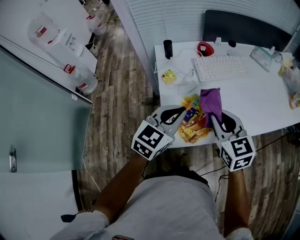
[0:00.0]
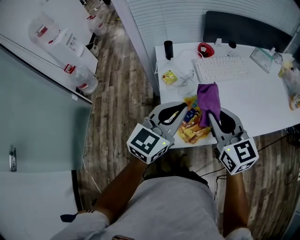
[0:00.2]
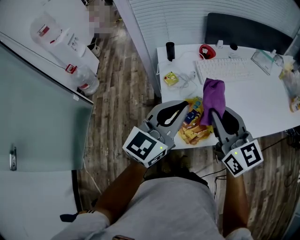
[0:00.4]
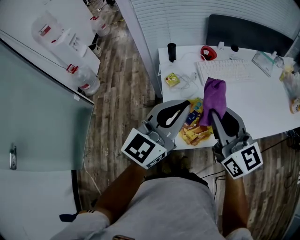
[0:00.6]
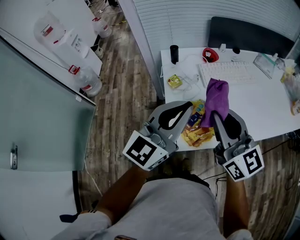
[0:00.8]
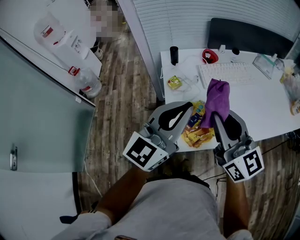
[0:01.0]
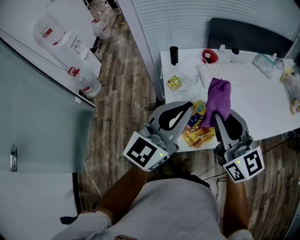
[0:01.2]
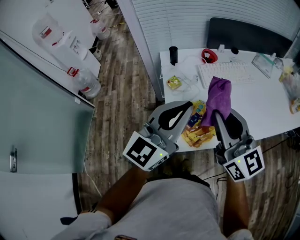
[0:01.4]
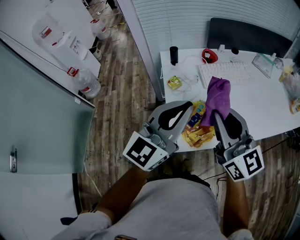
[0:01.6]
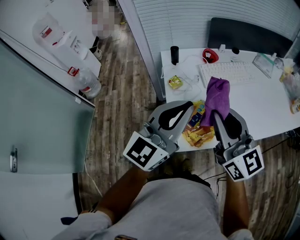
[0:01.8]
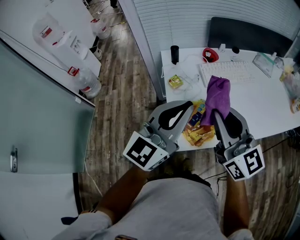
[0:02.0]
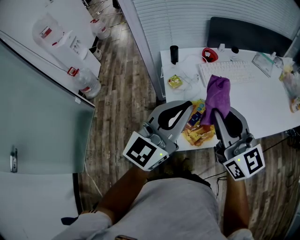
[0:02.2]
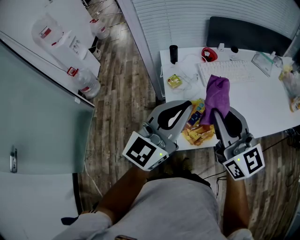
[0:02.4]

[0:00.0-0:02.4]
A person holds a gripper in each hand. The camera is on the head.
0:00.0 to 0:01.2: Both grippers move upward, approximately 10 cm. The right gripper points its fingers some 30 degrees further upward, while the left gripper changes its angle by approximately 30 degrees.
0:01.2 to 0:02.4: Neither gripper changes place.

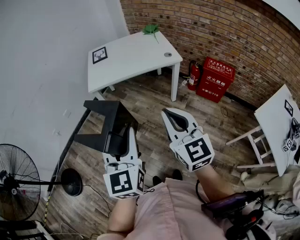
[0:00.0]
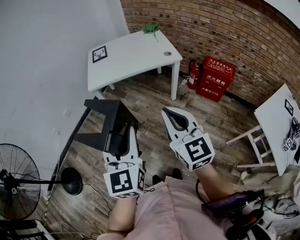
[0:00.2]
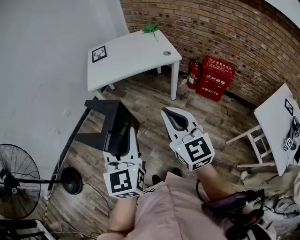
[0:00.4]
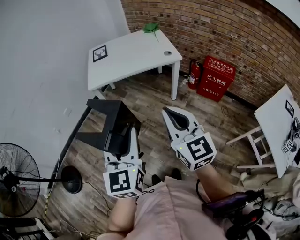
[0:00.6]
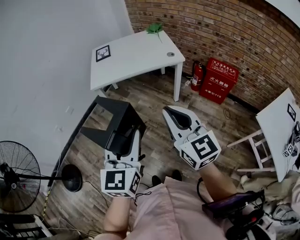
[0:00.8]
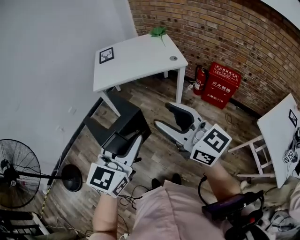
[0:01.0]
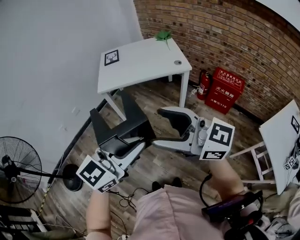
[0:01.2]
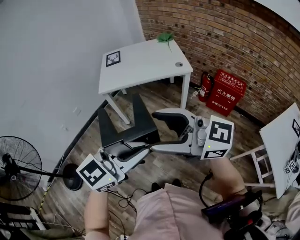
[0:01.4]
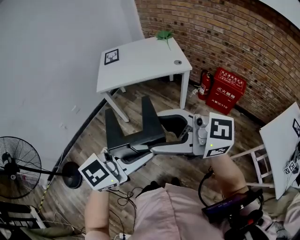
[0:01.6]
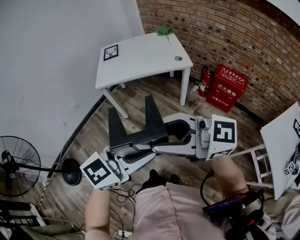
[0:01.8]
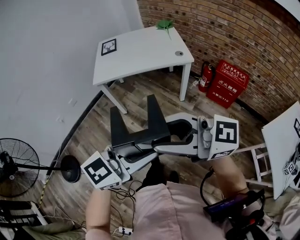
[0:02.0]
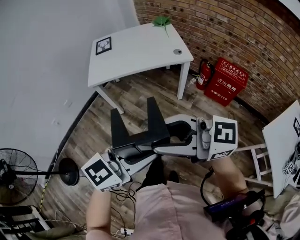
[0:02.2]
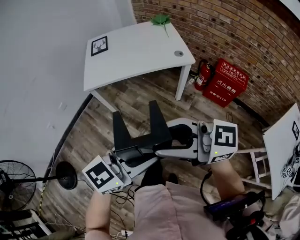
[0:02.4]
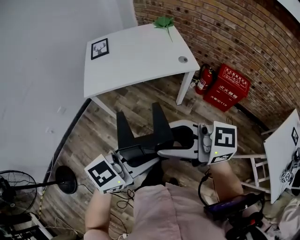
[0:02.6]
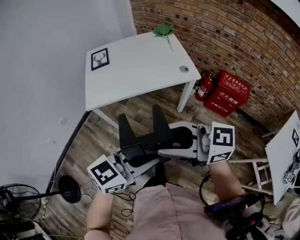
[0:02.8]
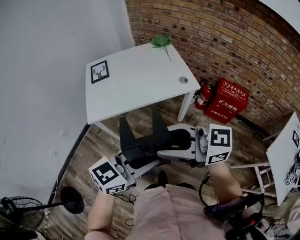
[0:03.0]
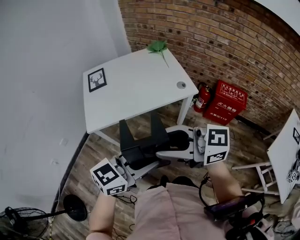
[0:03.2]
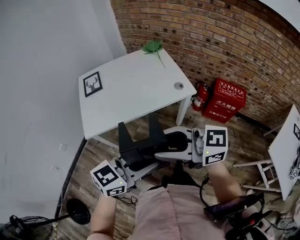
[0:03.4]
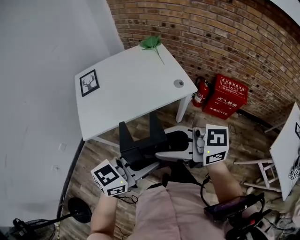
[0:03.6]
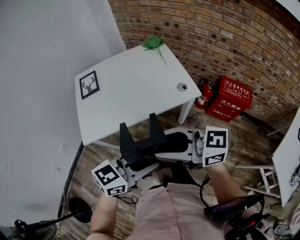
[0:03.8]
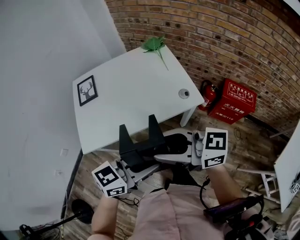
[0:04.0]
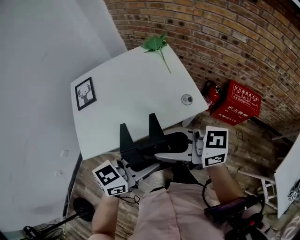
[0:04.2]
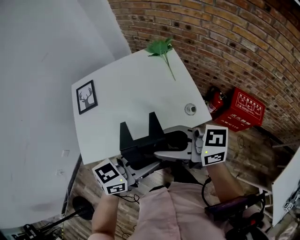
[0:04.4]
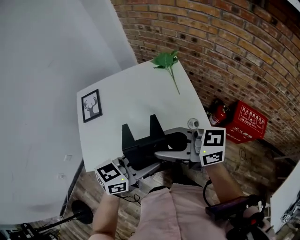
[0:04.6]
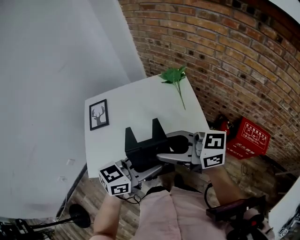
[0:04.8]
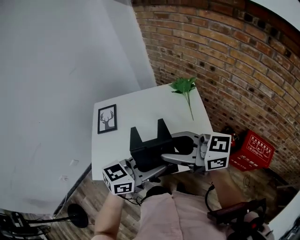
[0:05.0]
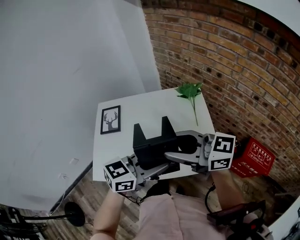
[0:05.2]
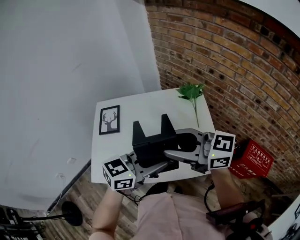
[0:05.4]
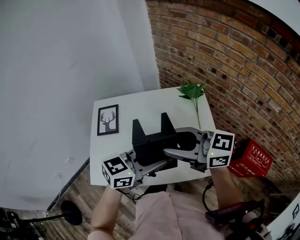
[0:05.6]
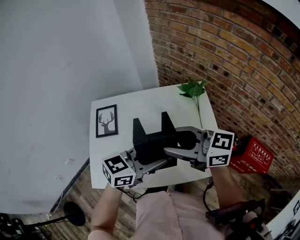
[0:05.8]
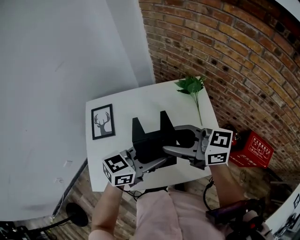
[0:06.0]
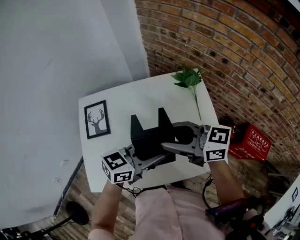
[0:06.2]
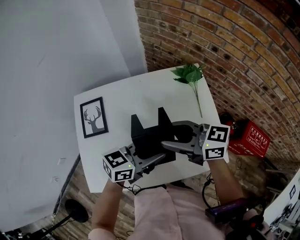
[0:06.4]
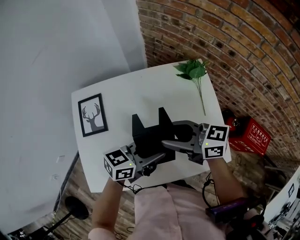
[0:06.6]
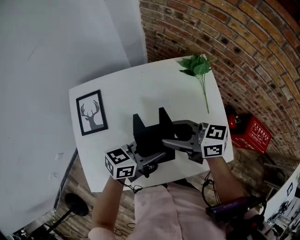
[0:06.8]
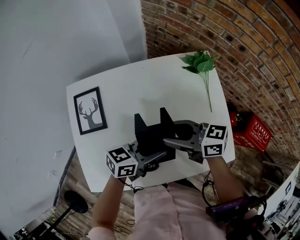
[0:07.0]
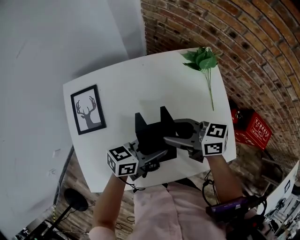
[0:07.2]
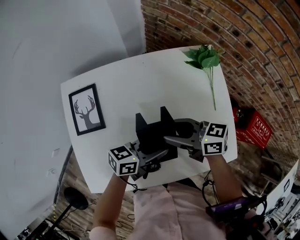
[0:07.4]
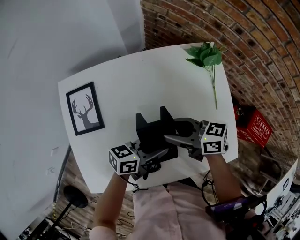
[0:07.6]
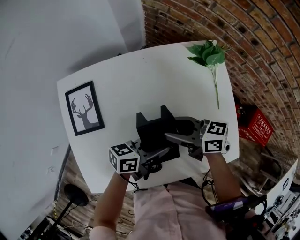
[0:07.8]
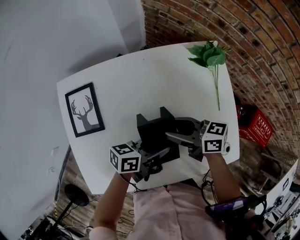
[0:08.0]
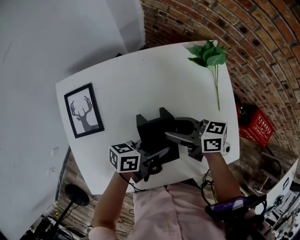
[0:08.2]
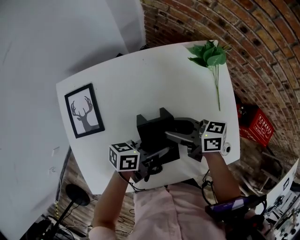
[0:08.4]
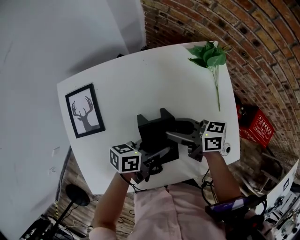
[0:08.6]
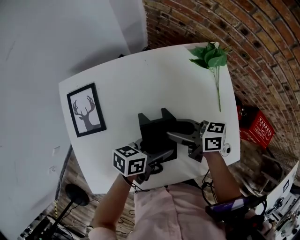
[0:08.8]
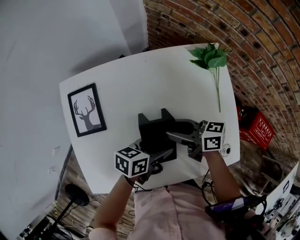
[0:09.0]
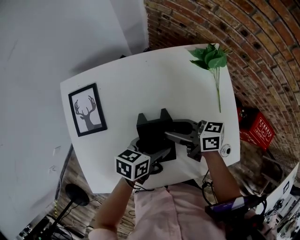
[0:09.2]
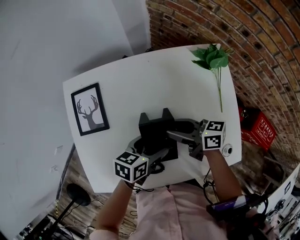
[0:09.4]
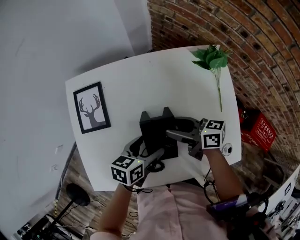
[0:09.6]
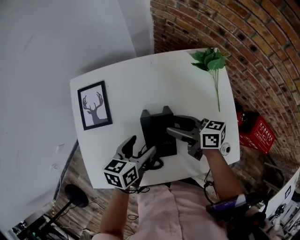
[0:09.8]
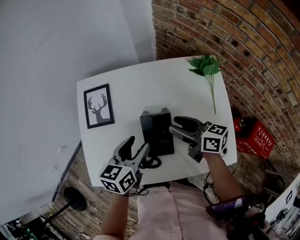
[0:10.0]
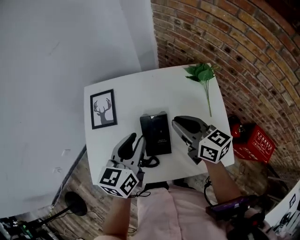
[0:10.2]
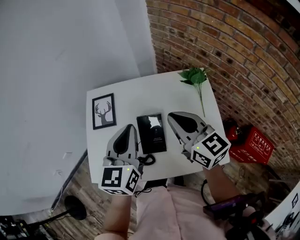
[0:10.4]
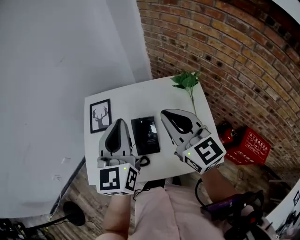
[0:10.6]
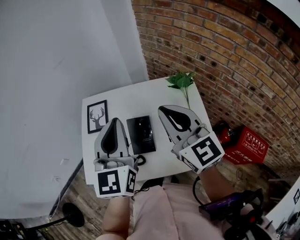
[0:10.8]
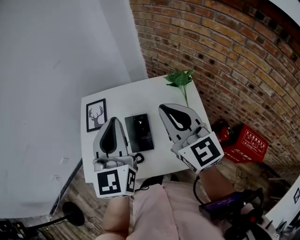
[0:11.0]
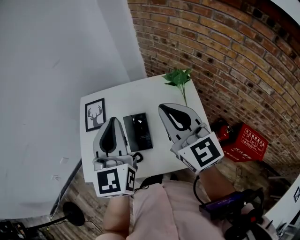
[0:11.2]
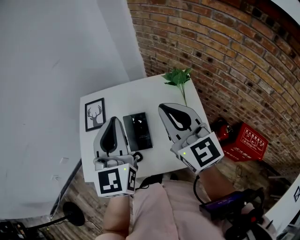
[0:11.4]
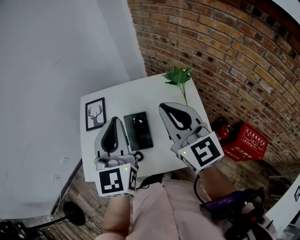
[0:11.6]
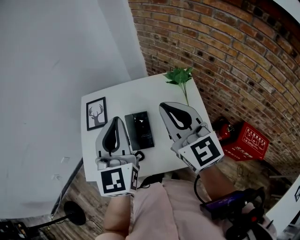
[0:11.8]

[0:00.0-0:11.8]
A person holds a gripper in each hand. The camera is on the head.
0:00.0 to 0:01.4: The right gripper heads upward, covering some 10 cm, changes its angle by about 60 degrees, and opens up. Meanwhile the left gripper moves roughly 10 cm, and turns by some 50 degrees.
0:01.4 to 0:03.0: The left gripper shifts by roughly 25 cm, and changes its angle by some 20 degrees; the right gripper moves roughly 25 cm, and closes its fingers.
0:03.0 to 0:04.4: The right gripper moves approximately 30 cm. Meanwhile the left gripper moves approximately 30 cm.
0:04.4 to 0:06.0: The right gripper ends up some 25 cm from where it was; the left gripper changes place by about 25 cm.
0:06.0 to 0:07.4: The grippers both shift downward by roughly 20 cm. The right gripper changes its angle by approximately 20 degrees. Meanwhile the left gripper changes its angle by about 30 degrees.
0:07.4 to 0:08.8: The right gripper shifts by approximately 5 cm. Meanwhile the left gripper opens.
0:08.8 to 0:10.4: Both grippers move upward, approximately 25 cm. The right gripper turns by about 50 degrees, and closes its fingers. Meanwhile the left gripper rotates about 70 degrees, and closes.
0:10.4 to 0:11.8: The left gripper heads upward, covering approximately 10 cm. Meanwhile the right gripper is displaced upward and backward by about 10 cm, and turns by about 20 degrees.

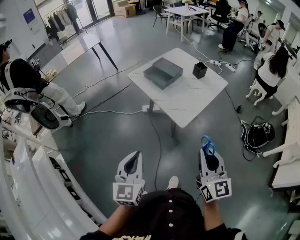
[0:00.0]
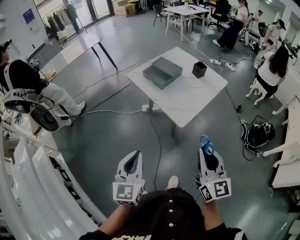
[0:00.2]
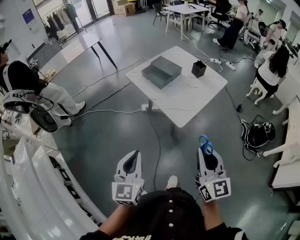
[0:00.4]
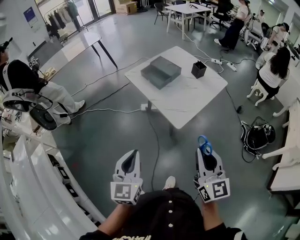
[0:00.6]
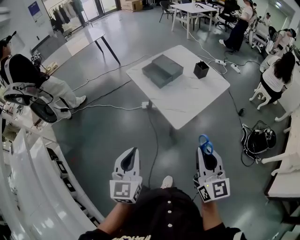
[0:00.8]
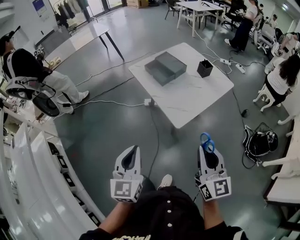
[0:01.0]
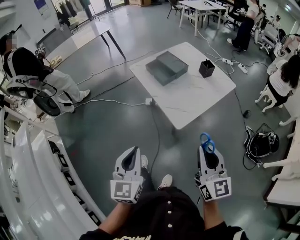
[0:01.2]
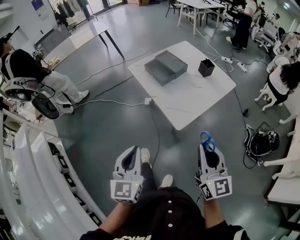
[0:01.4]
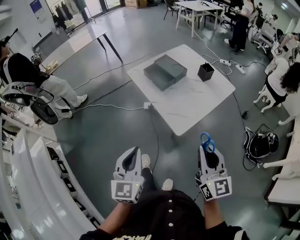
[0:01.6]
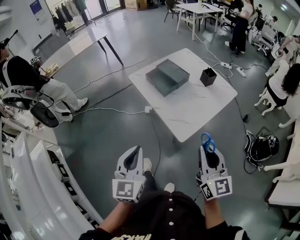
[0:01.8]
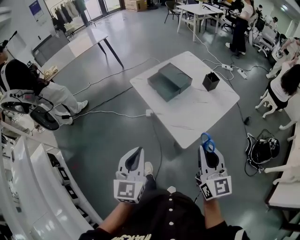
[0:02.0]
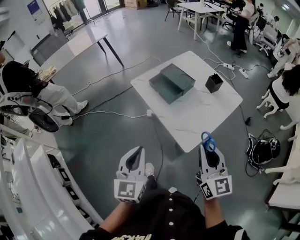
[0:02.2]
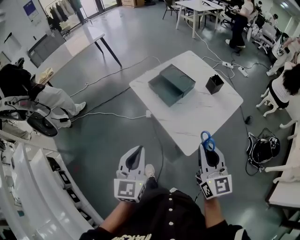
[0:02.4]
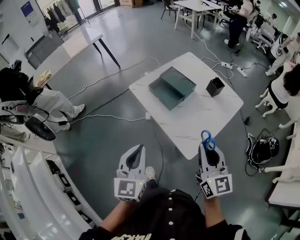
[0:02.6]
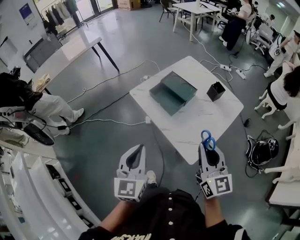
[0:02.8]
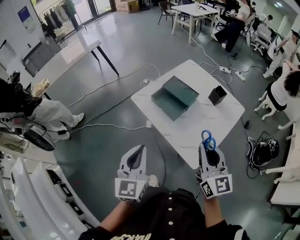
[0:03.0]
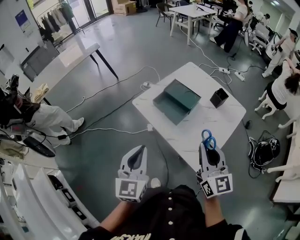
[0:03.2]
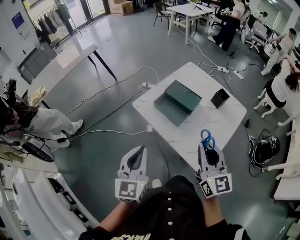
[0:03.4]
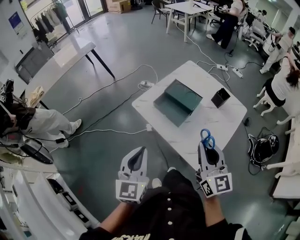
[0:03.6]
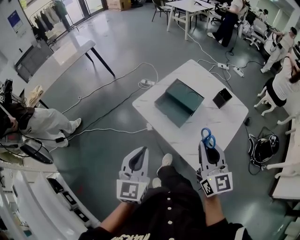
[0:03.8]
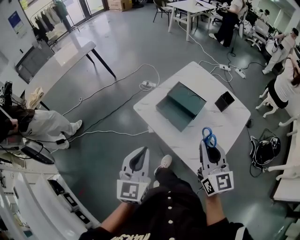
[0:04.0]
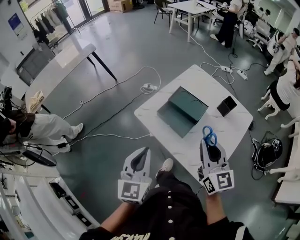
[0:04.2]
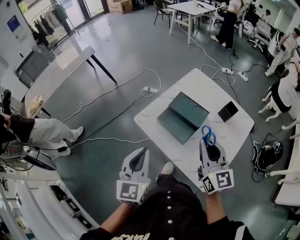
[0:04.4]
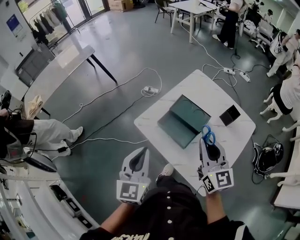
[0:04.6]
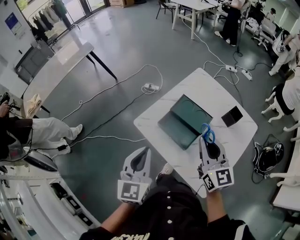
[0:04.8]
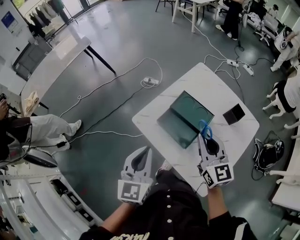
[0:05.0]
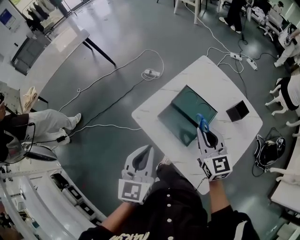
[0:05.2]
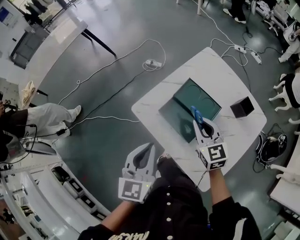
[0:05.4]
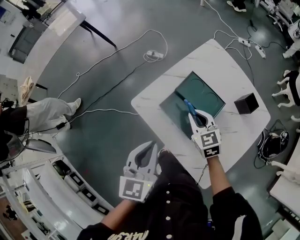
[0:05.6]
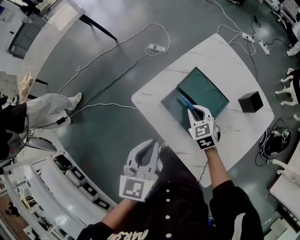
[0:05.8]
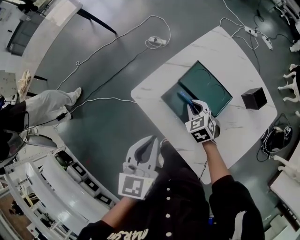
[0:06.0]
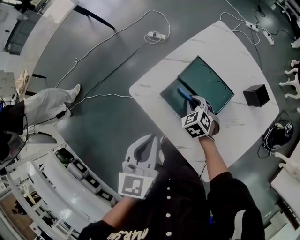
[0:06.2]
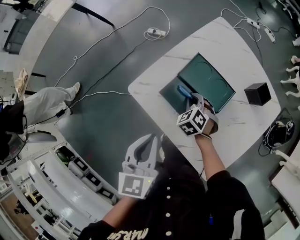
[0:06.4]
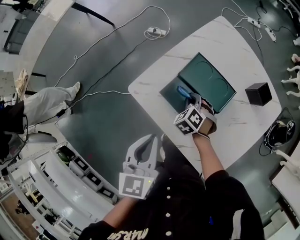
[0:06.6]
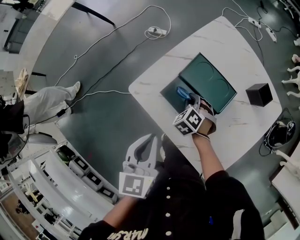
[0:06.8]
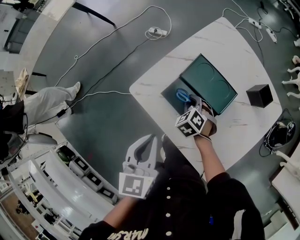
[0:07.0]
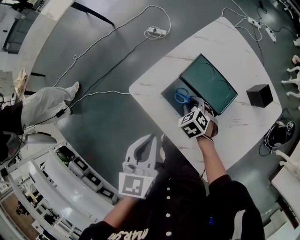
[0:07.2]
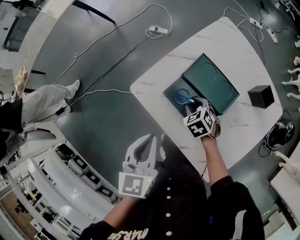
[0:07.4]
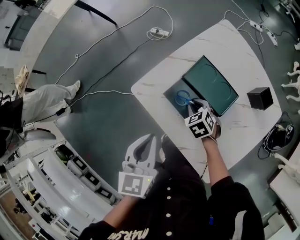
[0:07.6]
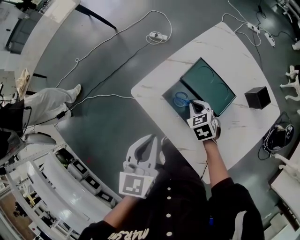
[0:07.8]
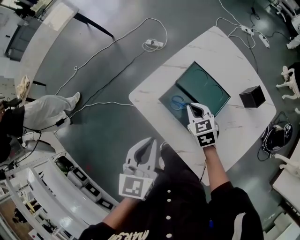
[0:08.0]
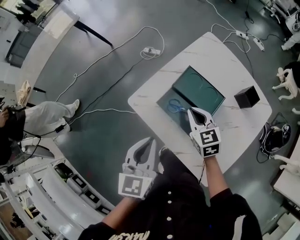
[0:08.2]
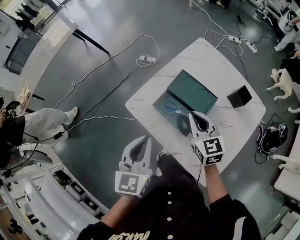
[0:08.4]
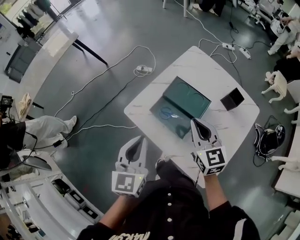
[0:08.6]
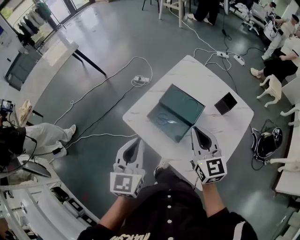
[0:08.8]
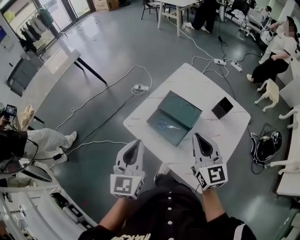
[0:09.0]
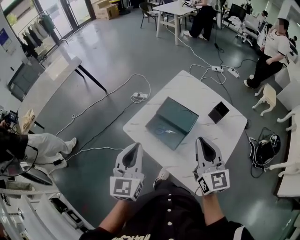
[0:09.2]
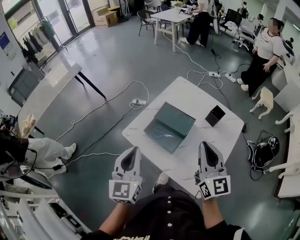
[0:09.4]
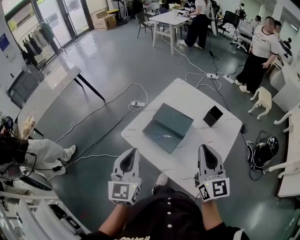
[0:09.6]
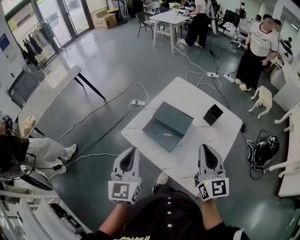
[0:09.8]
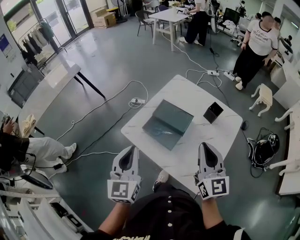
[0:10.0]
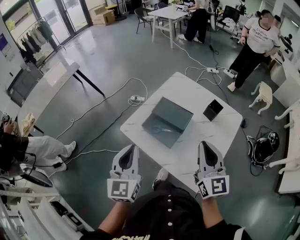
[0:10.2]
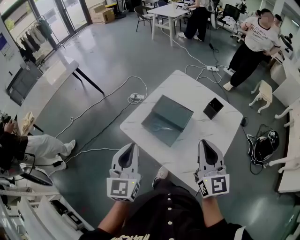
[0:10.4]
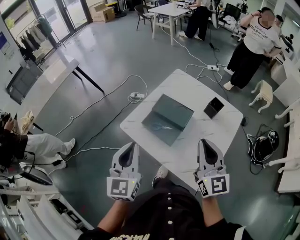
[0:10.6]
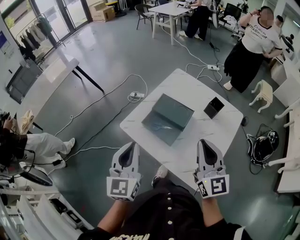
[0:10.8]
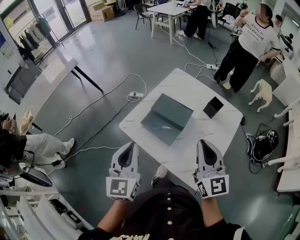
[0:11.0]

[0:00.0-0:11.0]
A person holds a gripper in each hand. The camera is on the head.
0:00.0 to 0:01.6: Both grippers move forward and to the right, about 10 cm.
0:01.6 to 0:03.2: The left gripper is displaced forward by roughly 25 cm; the right gripper heads forward and to the left, covering approximately 30 cm.
0:03.2 to 0:04.8: The grippers both shift forward by some 25 cm.
0:04.8 to 0:06.2: The right gripper travels downward and forward by about 35 cm, and angles its fingers downward, by roughly 50 degrees; the left gripper travels downward and forward by some 10 cm.
0:06.2 to 0:07.8: The right gripper opens, then closes once more.
0:07.8 to 0:09.4: The right gripper moves upward and backward, approximately 40 cm, and angles its fingers upward, by about 60 degrees; the left gripper travels upward and backward by some 15 cm, and swivels roughly 20 degrees.
0:09.4 to 0:11.0: The grippers stay close to where they were, moving slightly.
